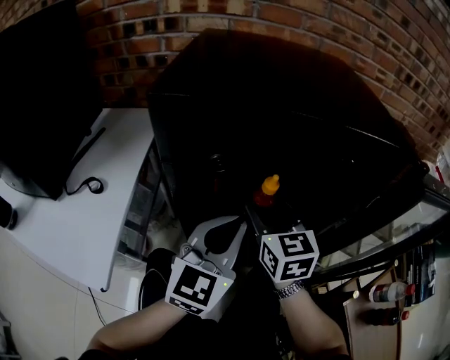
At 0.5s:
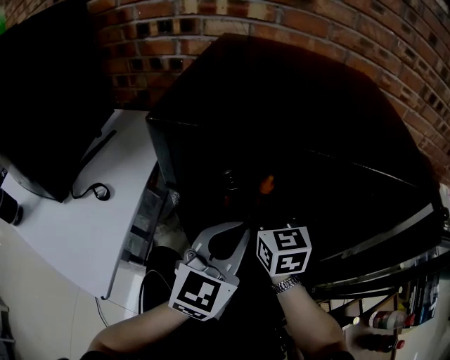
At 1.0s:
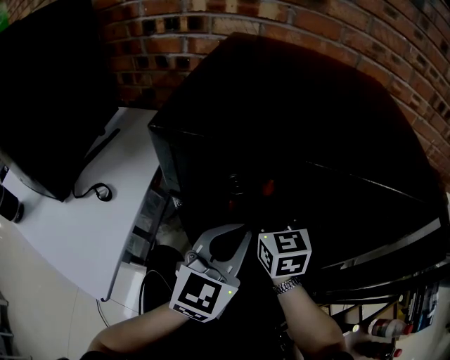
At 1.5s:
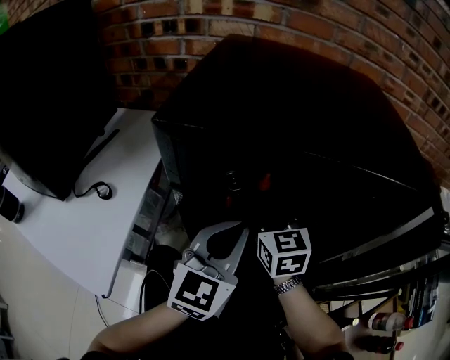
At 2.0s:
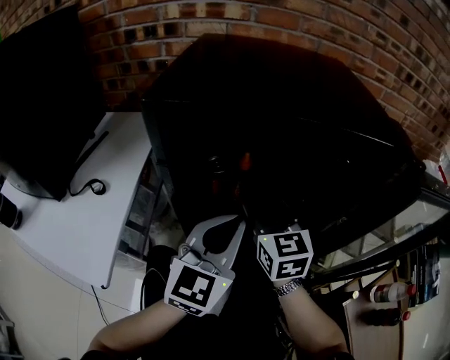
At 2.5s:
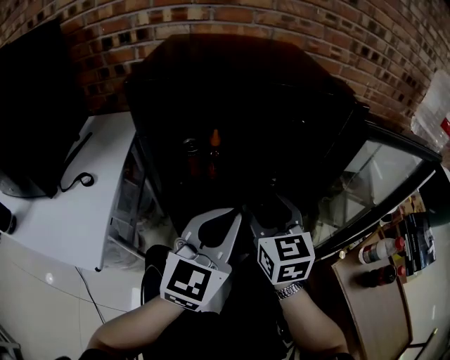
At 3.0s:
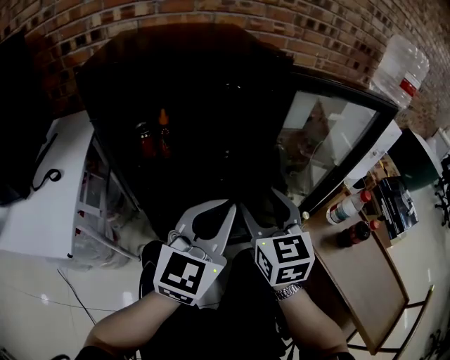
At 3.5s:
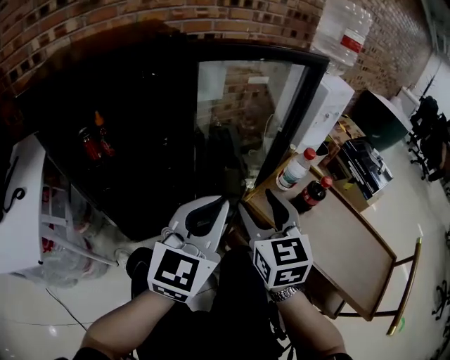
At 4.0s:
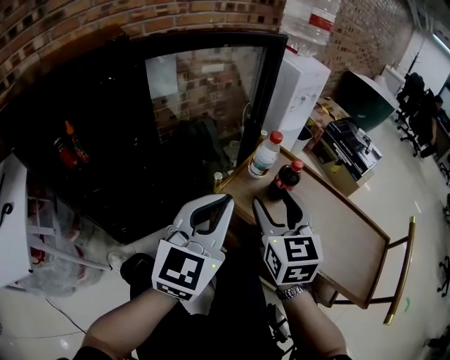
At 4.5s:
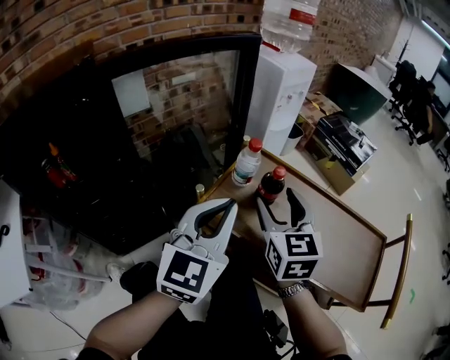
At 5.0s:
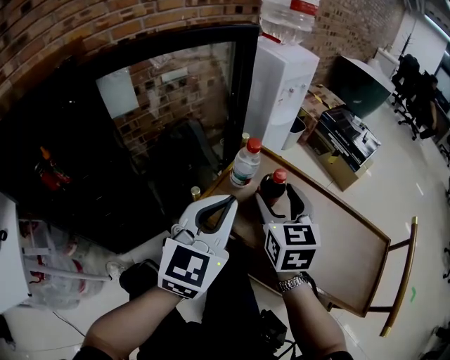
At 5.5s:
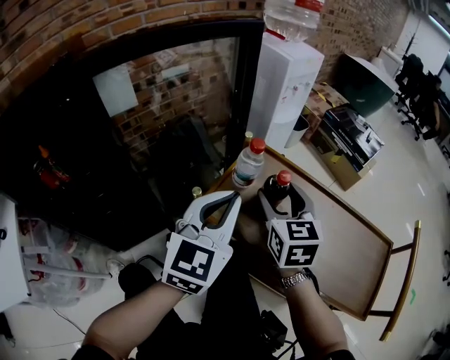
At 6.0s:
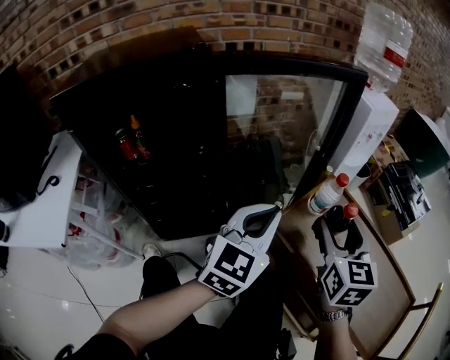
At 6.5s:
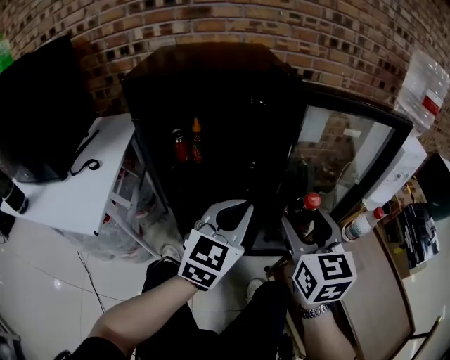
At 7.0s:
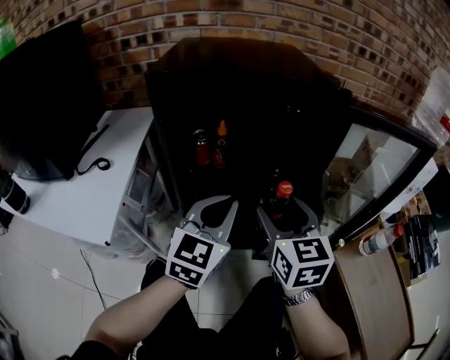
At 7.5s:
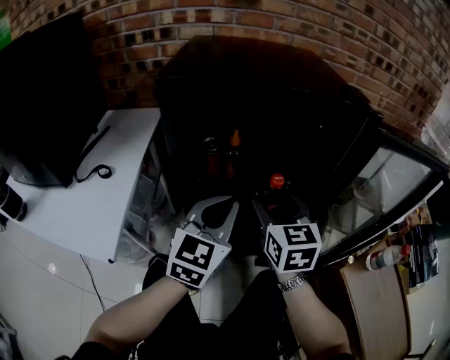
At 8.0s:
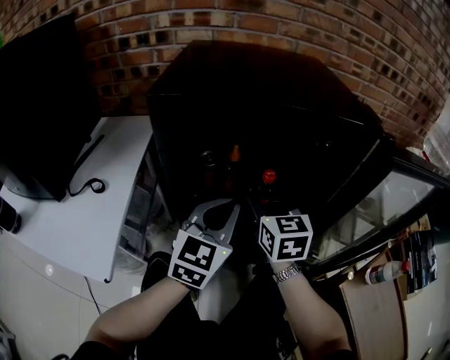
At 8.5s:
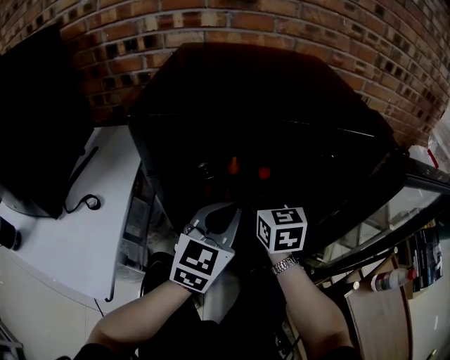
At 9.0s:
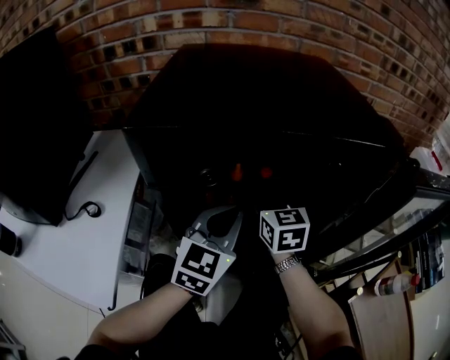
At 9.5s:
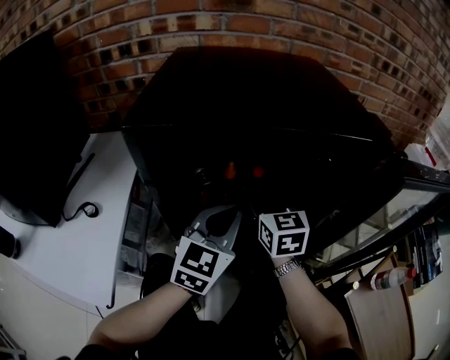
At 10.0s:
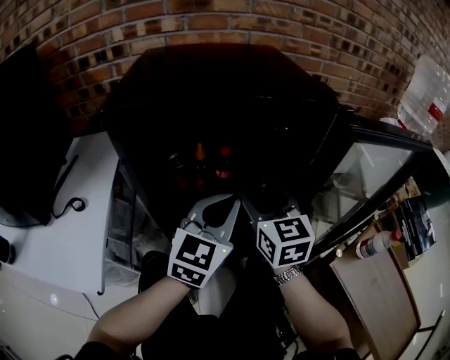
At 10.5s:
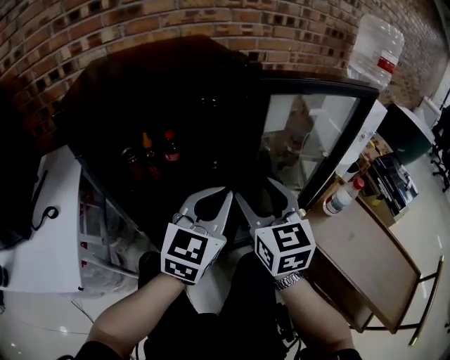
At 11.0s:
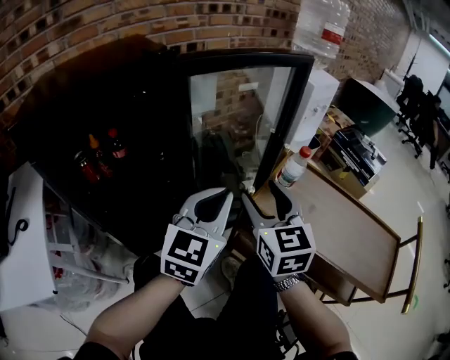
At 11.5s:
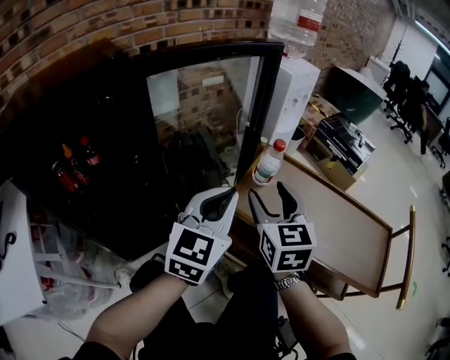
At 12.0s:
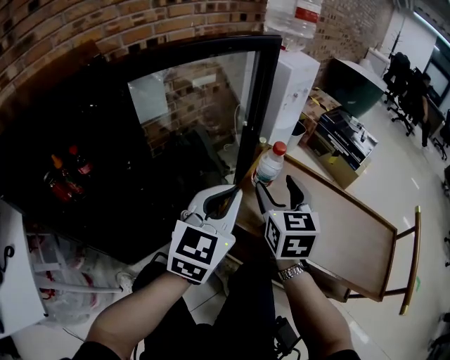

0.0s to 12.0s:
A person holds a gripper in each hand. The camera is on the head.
2.0s to 4.0s: The two grippers travel together, some 50 cm. The left gripper swivels approximately 30 degrees; the right gripper changes its angle by some 40 degrees.
4.0s to 6.0s: The left gripper heads forward, covering about 5 cm.
6.0s to 8.0s: The left gripper moves roughly 40 cm, and changes its angle by roughly 30 degrees, while the right gripper changes place by about 50 cm, and swivels about 30 degrees.
8.0s to 10.0s: The right gripper moves roughly 10 cm forward and comes back. Meanwhile the left gripper moves to the right, approximately 5 cm.
10.0s to 12.0s: The right gripper changes place by roughly 40 cm, and changes its angle by approximately 40 degrees, while the left gripper changes place by about 35 cm, and changes its angle by some 30 degrees.

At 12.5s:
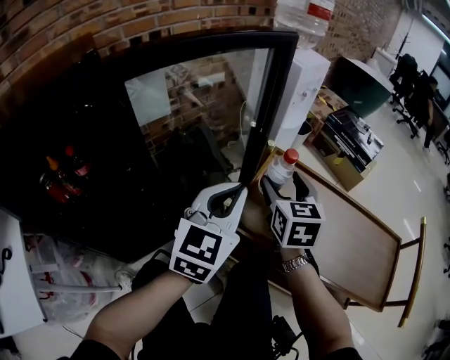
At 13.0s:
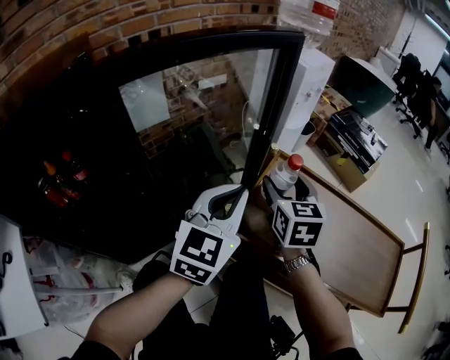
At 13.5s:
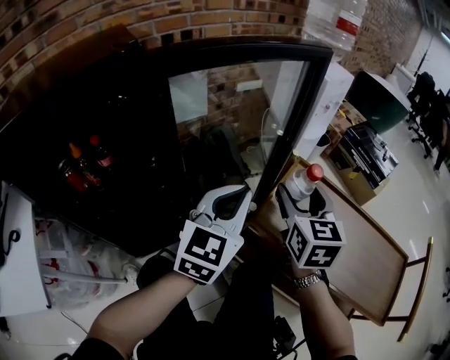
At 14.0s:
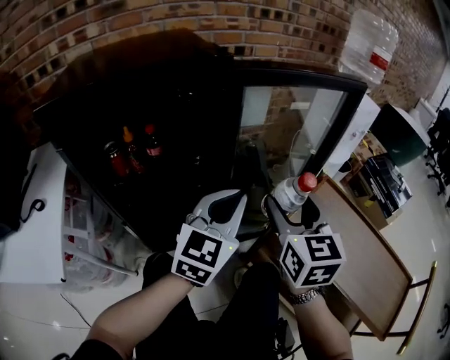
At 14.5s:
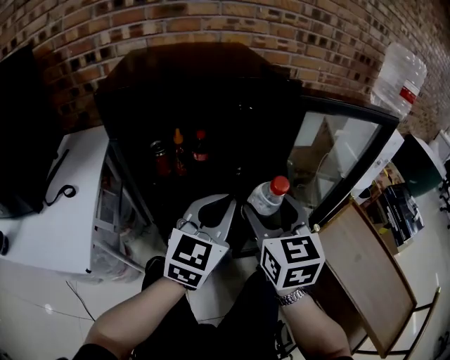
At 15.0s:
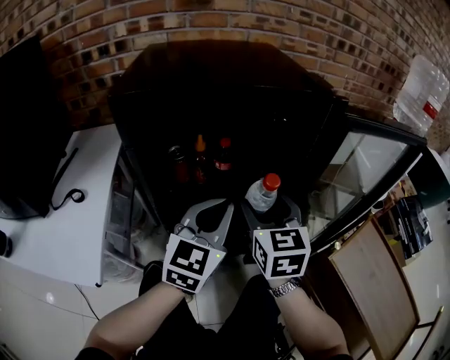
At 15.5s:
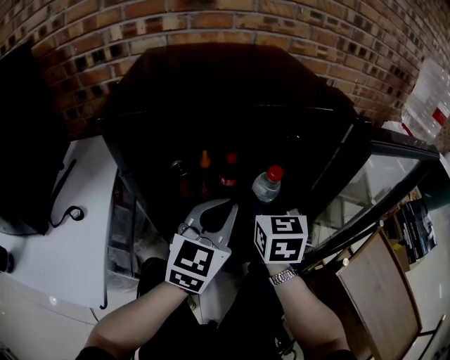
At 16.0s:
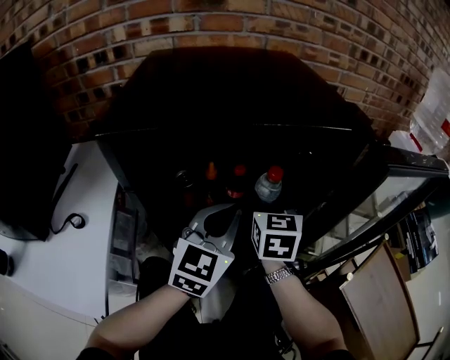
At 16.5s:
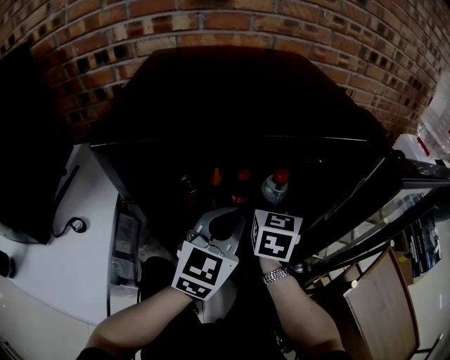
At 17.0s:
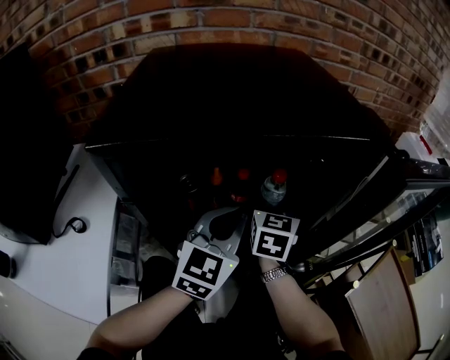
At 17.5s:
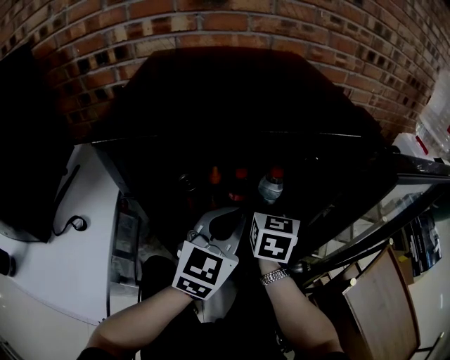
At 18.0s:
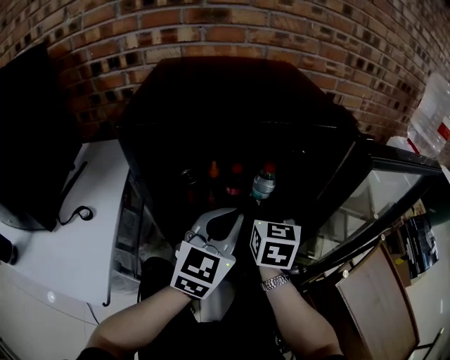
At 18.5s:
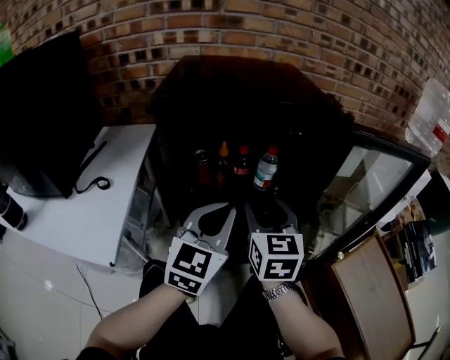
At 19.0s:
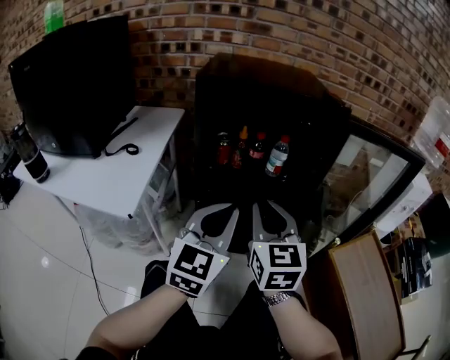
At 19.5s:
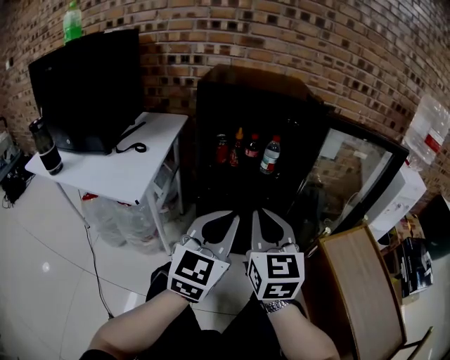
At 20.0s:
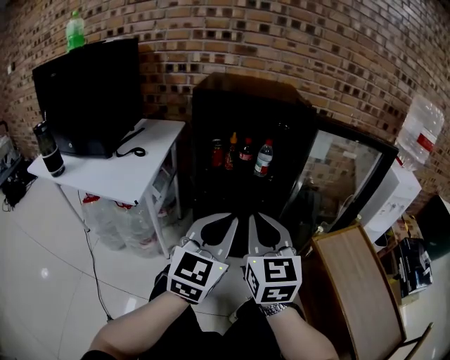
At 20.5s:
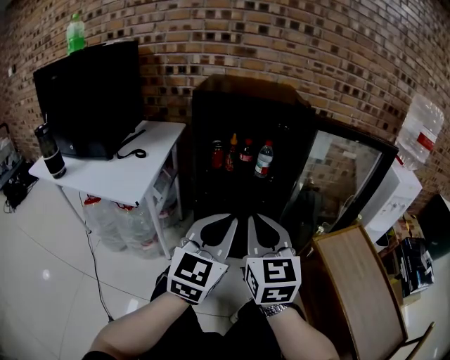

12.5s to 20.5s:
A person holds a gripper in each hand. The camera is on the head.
12.5s to 14.5s: The left gripper changes place by approximately 30 cm, and turns by roughly 30 degrees. Meanwhile the right gripper ends up about 35 cm from where it was, and rotates roughly 40 degrees.
14.5s to 16.5s: The left gripper heads forward and to the left, covering roughly 15 cm; the right gripper moves forward and to the left, approximately 25 cm.
16.5s to 18.5s: Both grippers travel together backward, approximately 15 cm.
18.5s to 20.5s: Both grippers travel together backward, about 25 cm. The right gripper closes up.

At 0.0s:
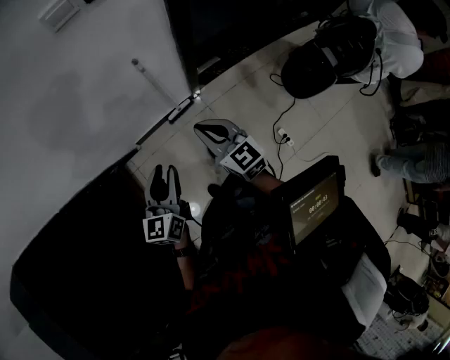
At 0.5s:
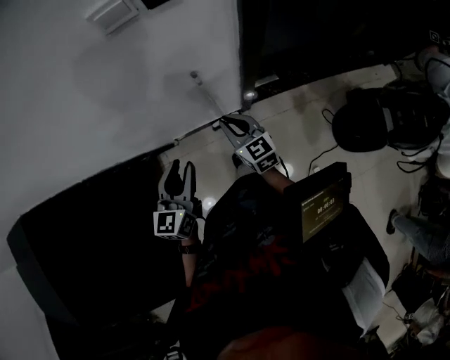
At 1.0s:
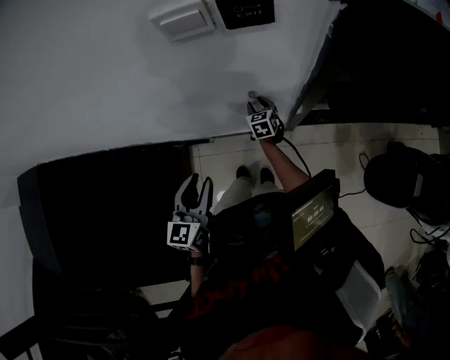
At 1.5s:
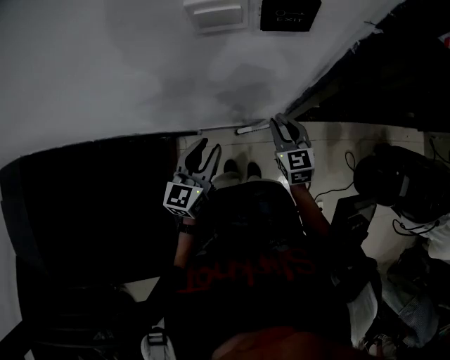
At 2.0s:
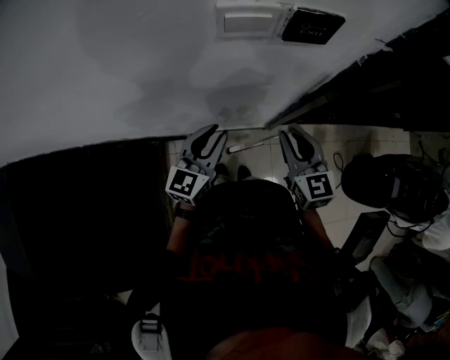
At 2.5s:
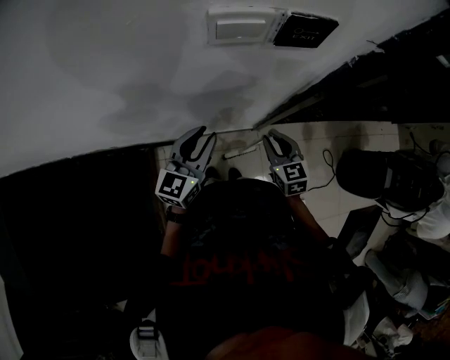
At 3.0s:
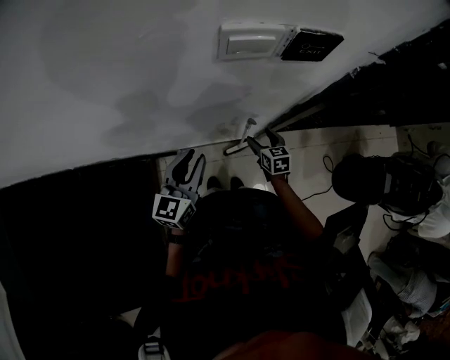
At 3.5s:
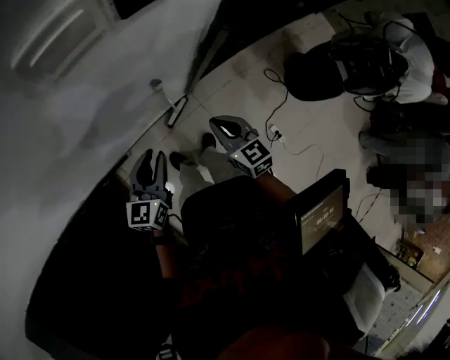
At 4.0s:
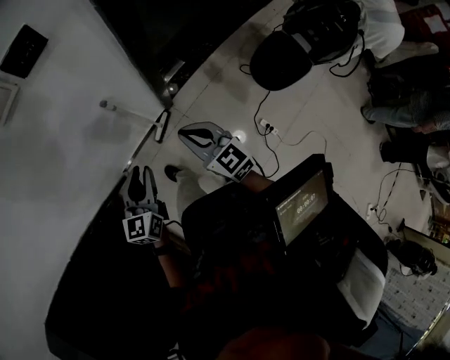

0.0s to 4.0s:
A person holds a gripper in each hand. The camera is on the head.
0.0s to 2.0s: The two grippers go approximately 25 cm forward.
2.0s to 4.0s: The left gripper is displaced to the right and backward by some 15 cm; the right gripper moves backward and to the right, roughly 15 cm, travels downward and back again, about 25 cm each way, and opens and closes again.

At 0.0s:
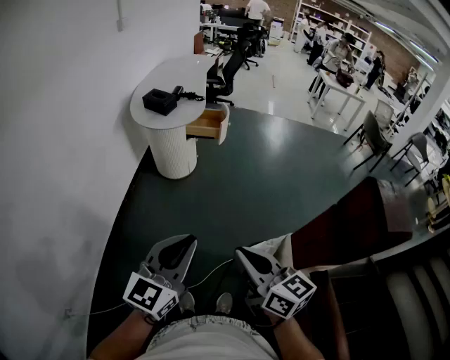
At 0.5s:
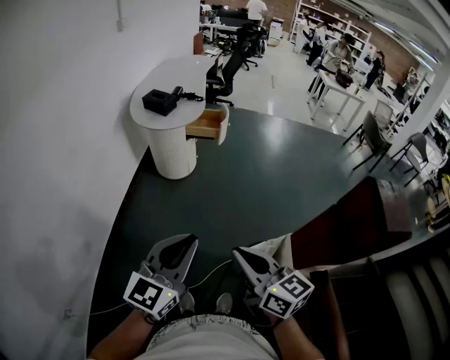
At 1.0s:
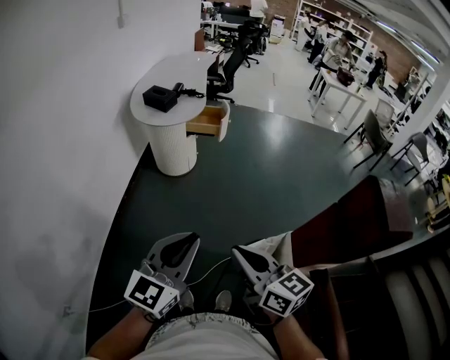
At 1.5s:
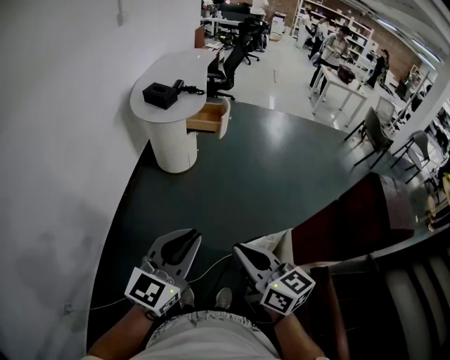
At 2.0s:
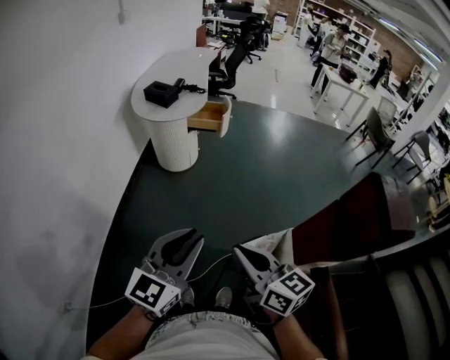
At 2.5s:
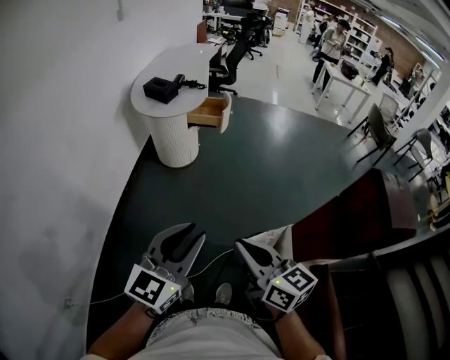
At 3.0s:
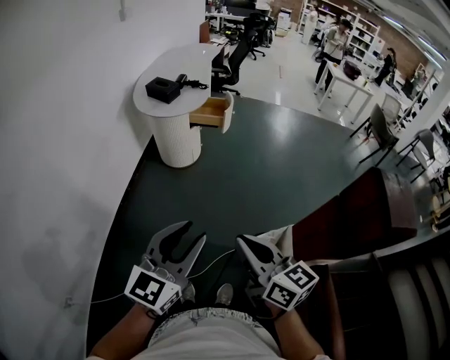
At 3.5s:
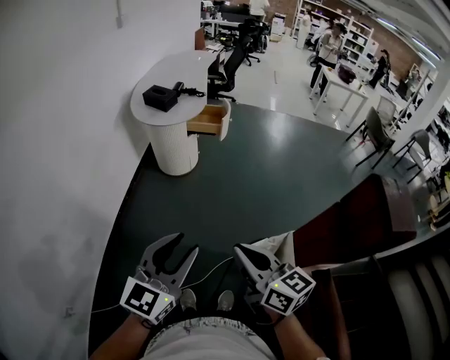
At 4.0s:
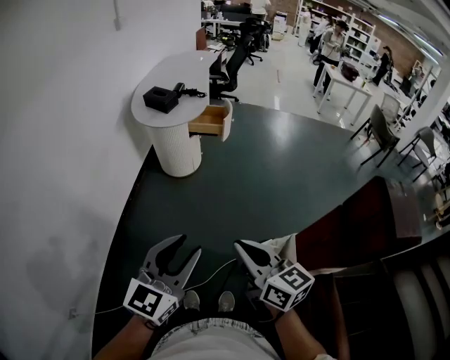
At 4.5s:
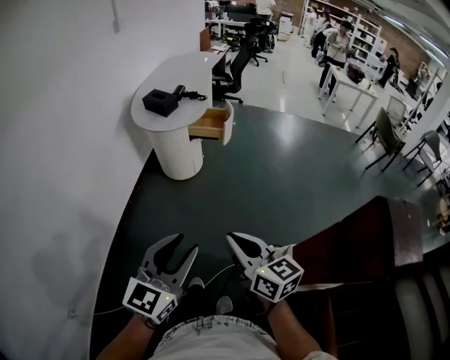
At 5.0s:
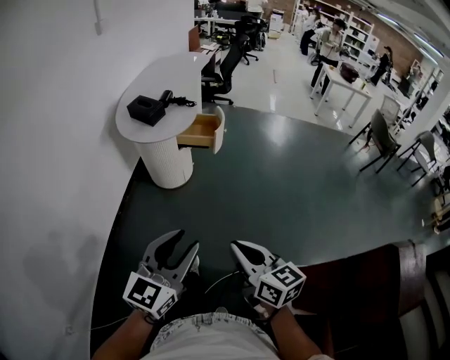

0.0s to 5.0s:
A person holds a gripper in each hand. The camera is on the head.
0.0s to 2.5s: There are only small adjustments of the grippers.
2.5s to 5.0s: Both grippers travel together forward, some 15 cm.
